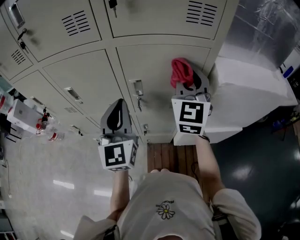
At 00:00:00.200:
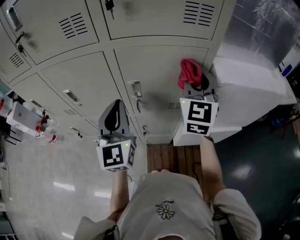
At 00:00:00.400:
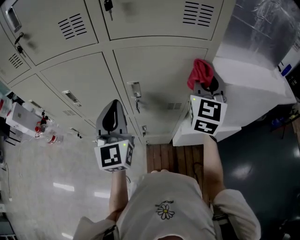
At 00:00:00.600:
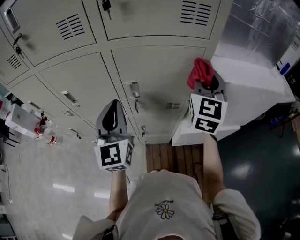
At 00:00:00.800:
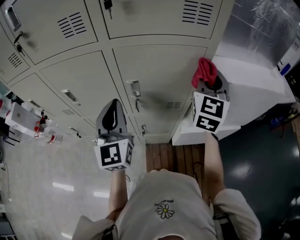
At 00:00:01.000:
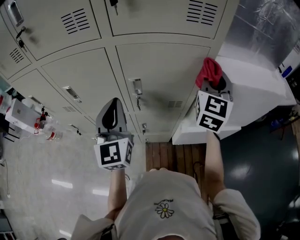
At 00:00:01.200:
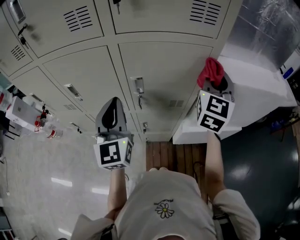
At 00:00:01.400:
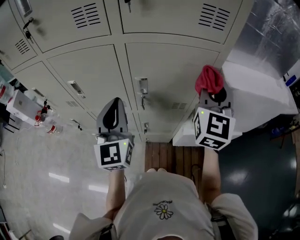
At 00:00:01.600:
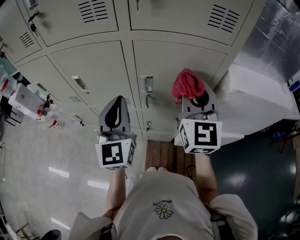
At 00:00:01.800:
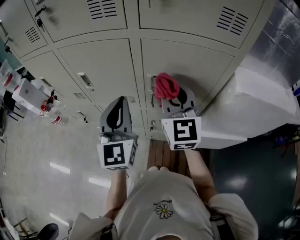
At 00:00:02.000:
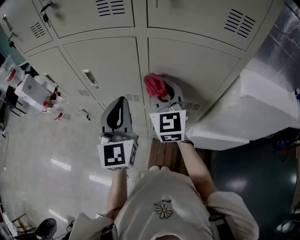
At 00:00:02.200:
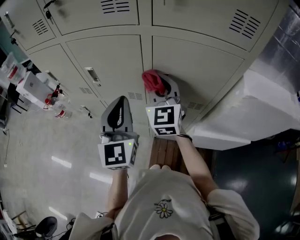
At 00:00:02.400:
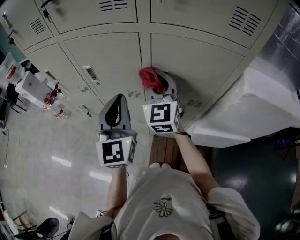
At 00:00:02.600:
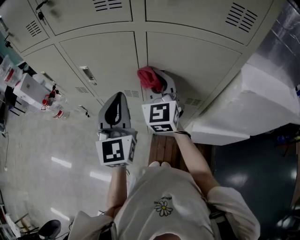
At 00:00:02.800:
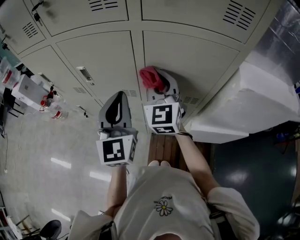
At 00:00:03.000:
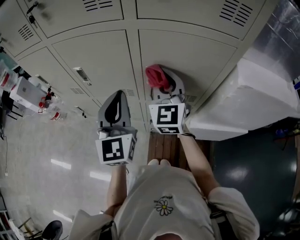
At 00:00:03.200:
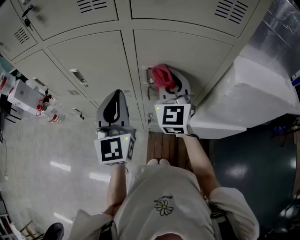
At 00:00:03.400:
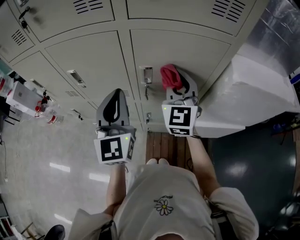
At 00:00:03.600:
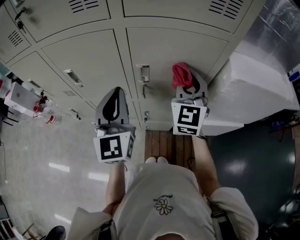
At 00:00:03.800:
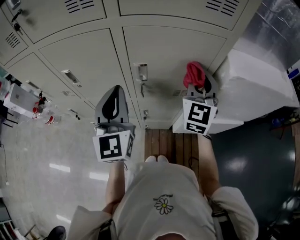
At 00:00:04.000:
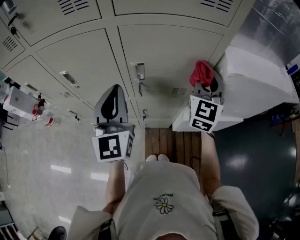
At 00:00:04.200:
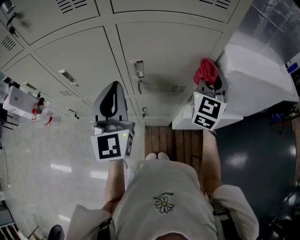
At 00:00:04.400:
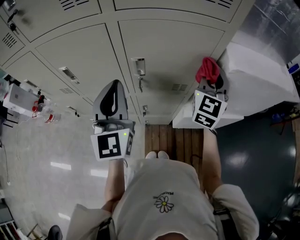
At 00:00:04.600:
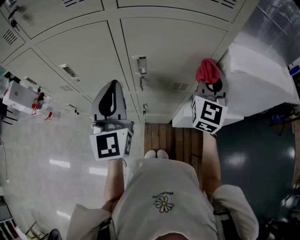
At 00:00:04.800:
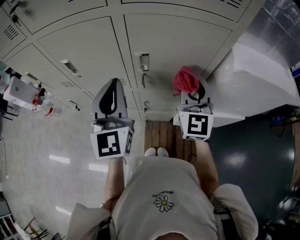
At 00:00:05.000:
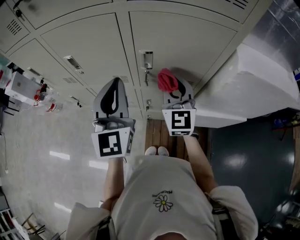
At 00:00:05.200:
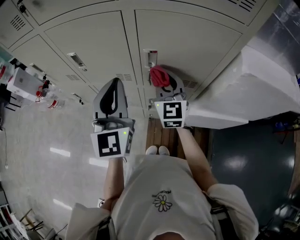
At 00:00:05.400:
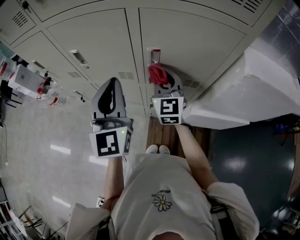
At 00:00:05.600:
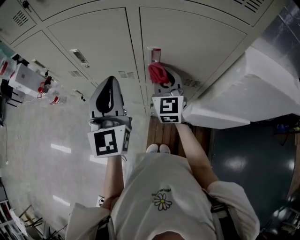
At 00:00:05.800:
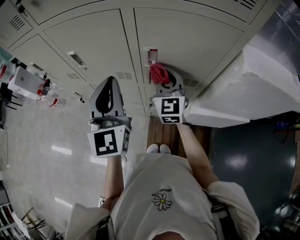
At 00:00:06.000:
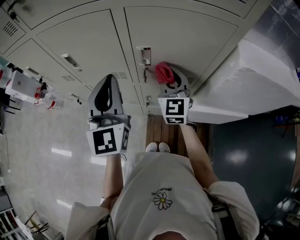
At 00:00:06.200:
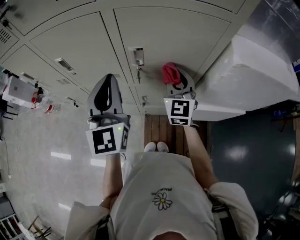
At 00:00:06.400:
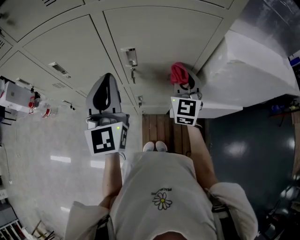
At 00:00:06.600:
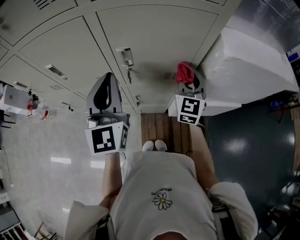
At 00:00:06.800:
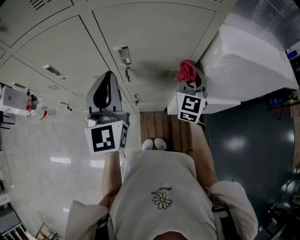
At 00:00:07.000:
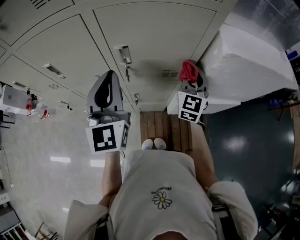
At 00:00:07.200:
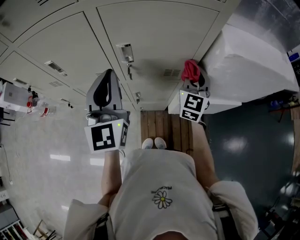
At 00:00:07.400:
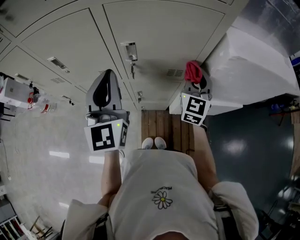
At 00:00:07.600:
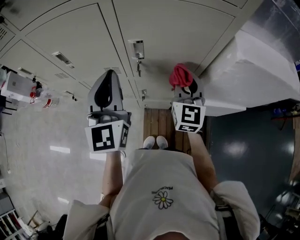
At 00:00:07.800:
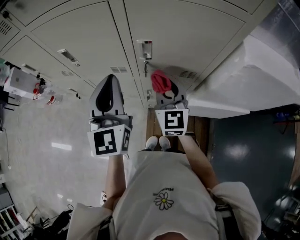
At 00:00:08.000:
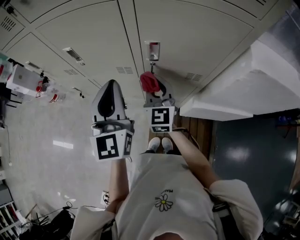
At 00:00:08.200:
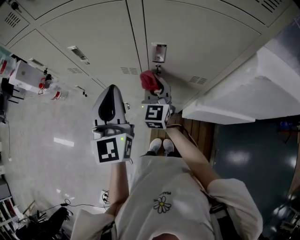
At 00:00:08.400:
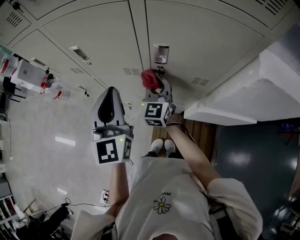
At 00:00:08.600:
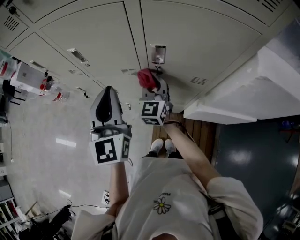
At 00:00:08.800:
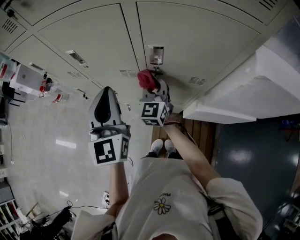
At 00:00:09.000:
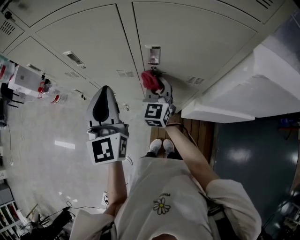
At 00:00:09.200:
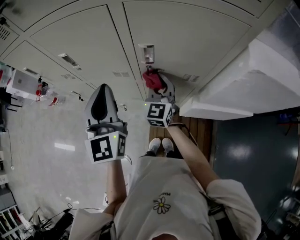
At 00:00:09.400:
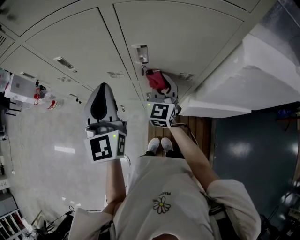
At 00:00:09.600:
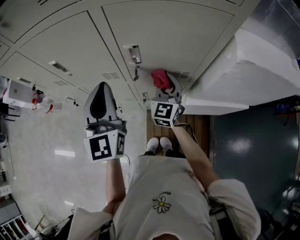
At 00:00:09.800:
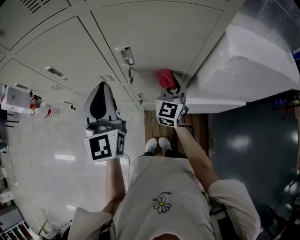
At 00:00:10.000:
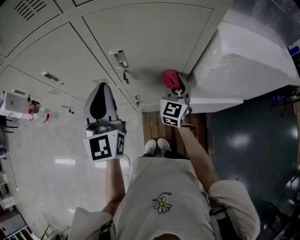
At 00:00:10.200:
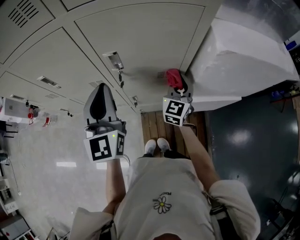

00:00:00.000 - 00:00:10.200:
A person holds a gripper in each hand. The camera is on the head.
00:00:00.000 - 00:00:01.400: The right gripper shifts approximately 5 cm to the right.
00:00:01.400 - 00:00:03.000: The right gripper goes roughly 20 cm to the left and downward, and swivels approximately 20 degrees.
00:00:03.000 - 00:00:04.400: The right gripper moves to the right, some 20 cm, and swivels approximately 30 degrees.
00:00:04.400 - 00:00:05.800: The right gripper moves to the left and downward, roughly 20 cm, and swivels roughly 30 degrees.
00:00:05.800 - 00:00:07.200: The right gripper moves to the right, approximately 20 cm, and turns by some 30 degrees. Meanwhile the left gripper shifts about 5 cm to the right.
00:00:07.200 - 00:00:08.800: The left gripper shifts about 10 cm to the left. Meanwhile the right gripper shifts roughly 25 cm to the left, and swivels some 20 degrees.
00:00:08.800 - 00:00:10.200: The left gripper shifts roughly 10 cm to the right. The right gripper moves to the right, some 25 cm, and turns by about 30 degrees.

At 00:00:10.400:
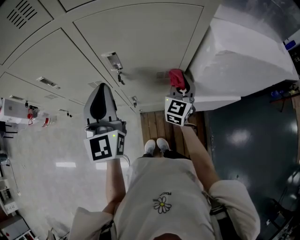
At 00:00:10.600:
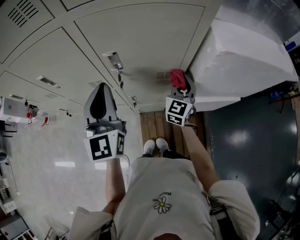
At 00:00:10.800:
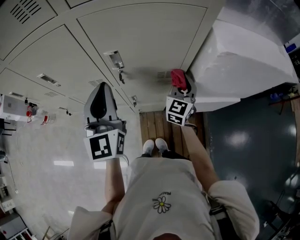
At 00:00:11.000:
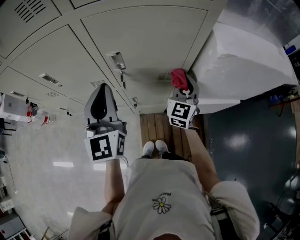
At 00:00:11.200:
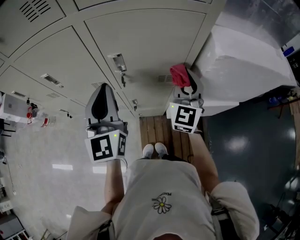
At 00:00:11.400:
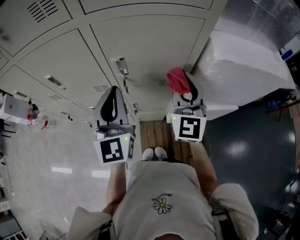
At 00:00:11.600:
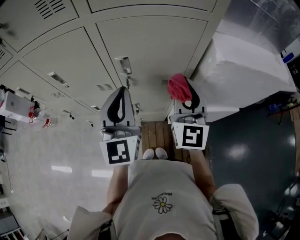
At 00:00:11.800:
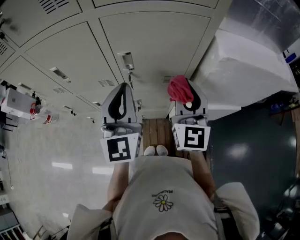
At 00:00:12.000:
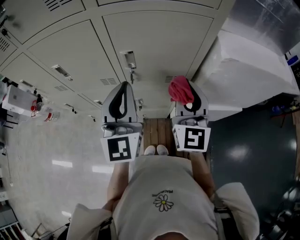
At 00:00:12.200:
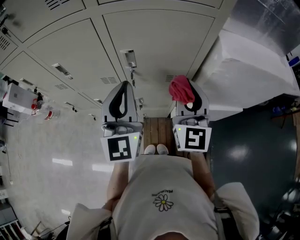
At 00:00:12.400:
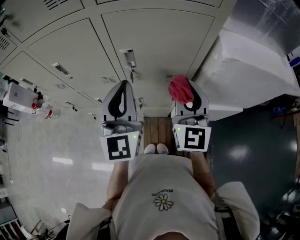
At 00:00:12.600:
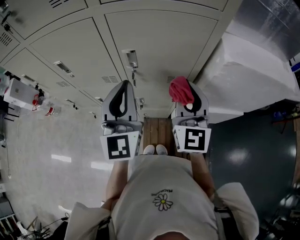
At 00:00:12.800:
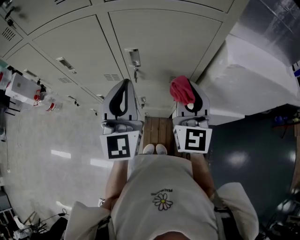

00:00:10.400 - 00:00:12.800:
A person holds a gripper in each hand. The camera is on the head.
00:00:10.400 - 00:00:11.600: The right gripper moves upward and backward, some 20 cm, and swivels approximately 30 degrees.
00:00:11.600 - 00:00:12.800: The grippers make only small movements.

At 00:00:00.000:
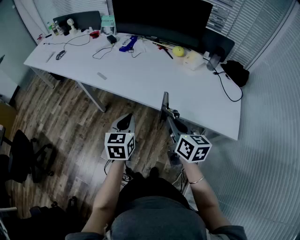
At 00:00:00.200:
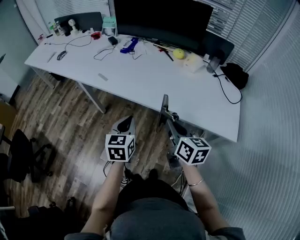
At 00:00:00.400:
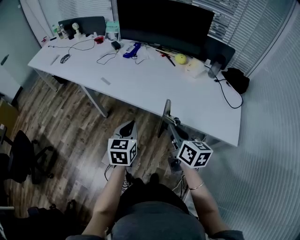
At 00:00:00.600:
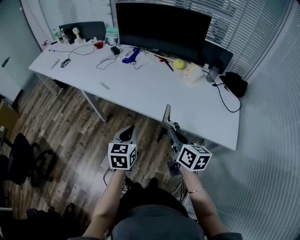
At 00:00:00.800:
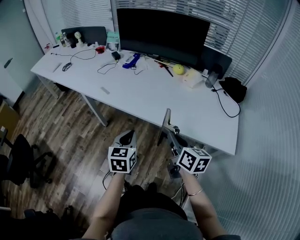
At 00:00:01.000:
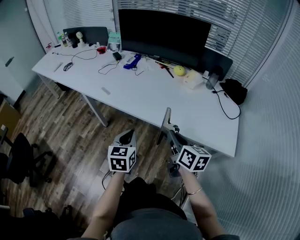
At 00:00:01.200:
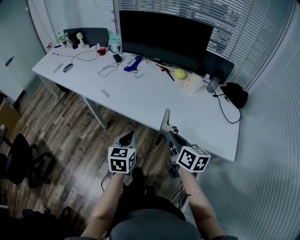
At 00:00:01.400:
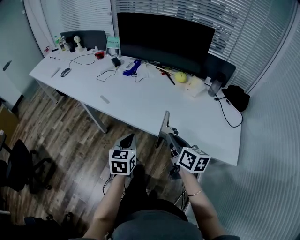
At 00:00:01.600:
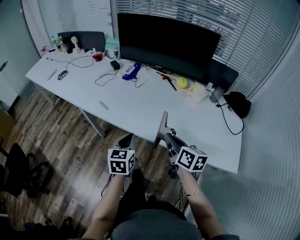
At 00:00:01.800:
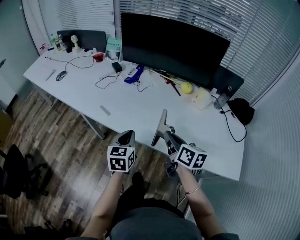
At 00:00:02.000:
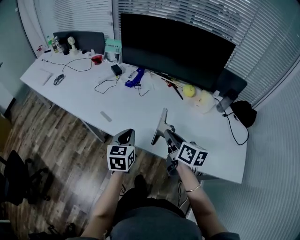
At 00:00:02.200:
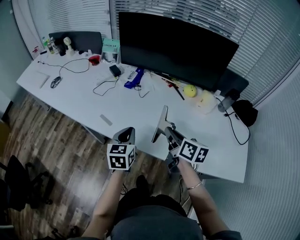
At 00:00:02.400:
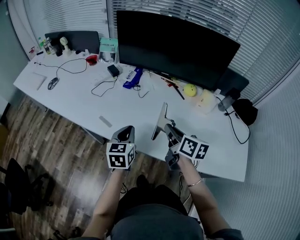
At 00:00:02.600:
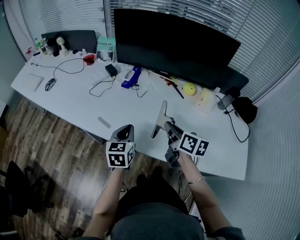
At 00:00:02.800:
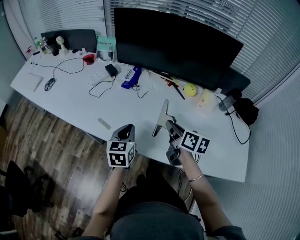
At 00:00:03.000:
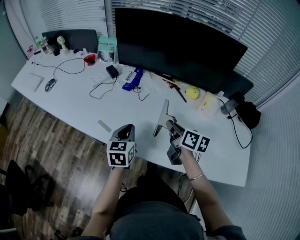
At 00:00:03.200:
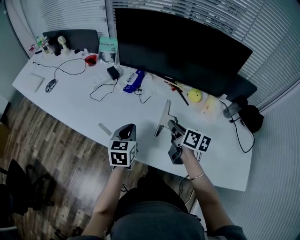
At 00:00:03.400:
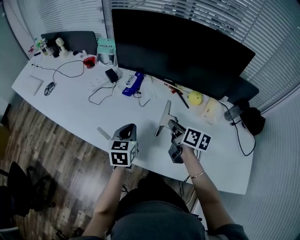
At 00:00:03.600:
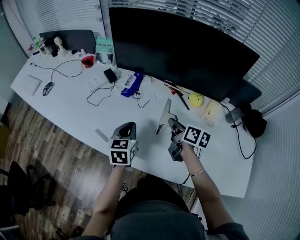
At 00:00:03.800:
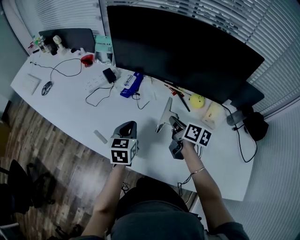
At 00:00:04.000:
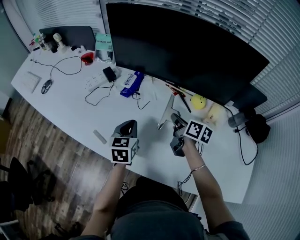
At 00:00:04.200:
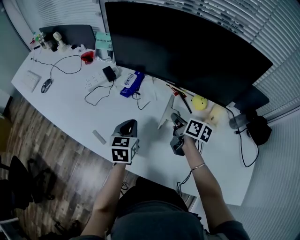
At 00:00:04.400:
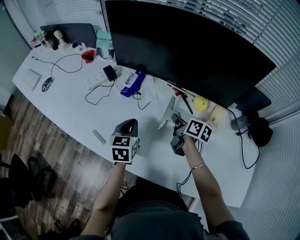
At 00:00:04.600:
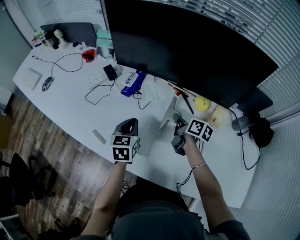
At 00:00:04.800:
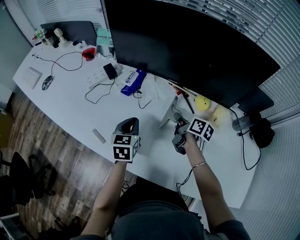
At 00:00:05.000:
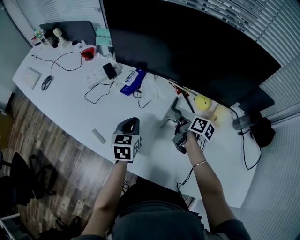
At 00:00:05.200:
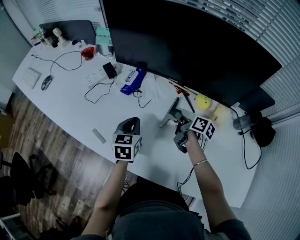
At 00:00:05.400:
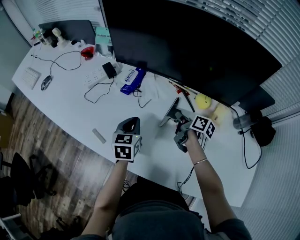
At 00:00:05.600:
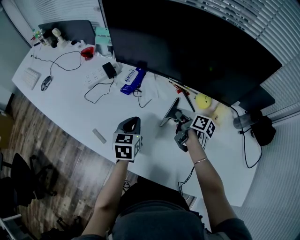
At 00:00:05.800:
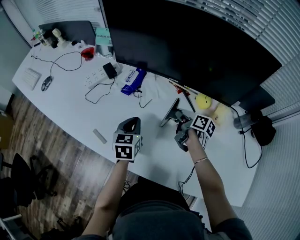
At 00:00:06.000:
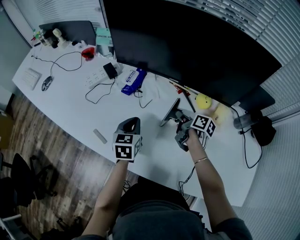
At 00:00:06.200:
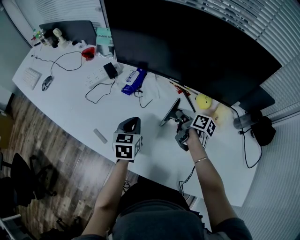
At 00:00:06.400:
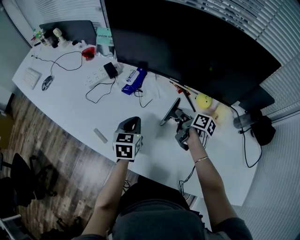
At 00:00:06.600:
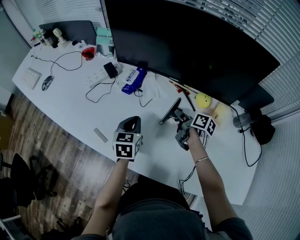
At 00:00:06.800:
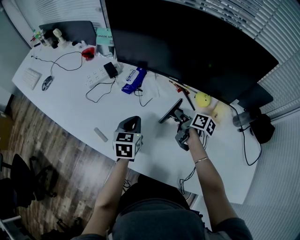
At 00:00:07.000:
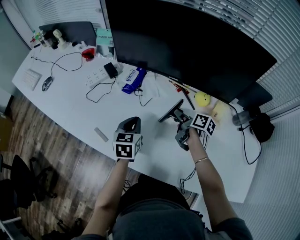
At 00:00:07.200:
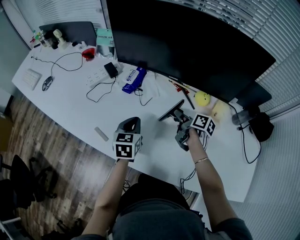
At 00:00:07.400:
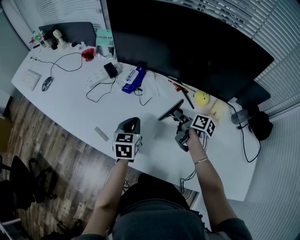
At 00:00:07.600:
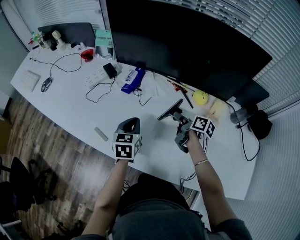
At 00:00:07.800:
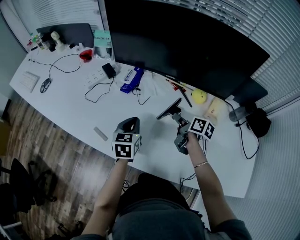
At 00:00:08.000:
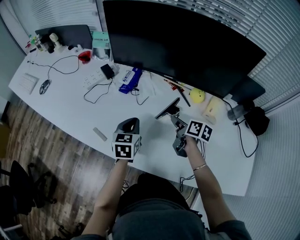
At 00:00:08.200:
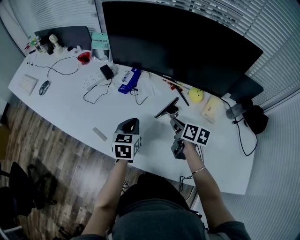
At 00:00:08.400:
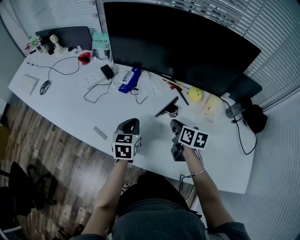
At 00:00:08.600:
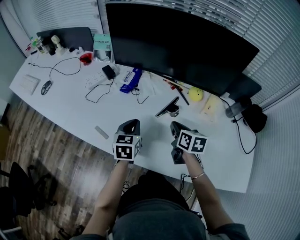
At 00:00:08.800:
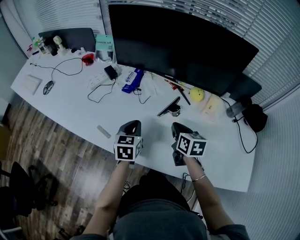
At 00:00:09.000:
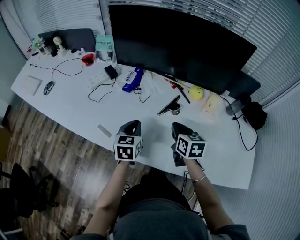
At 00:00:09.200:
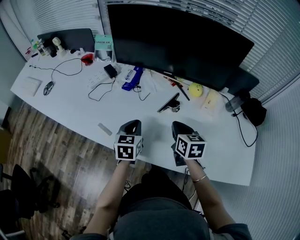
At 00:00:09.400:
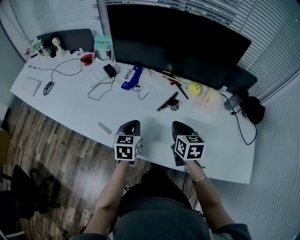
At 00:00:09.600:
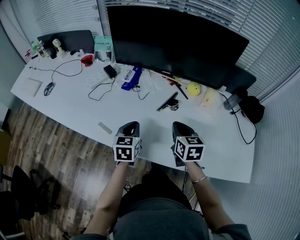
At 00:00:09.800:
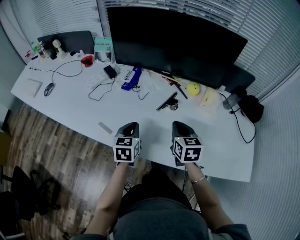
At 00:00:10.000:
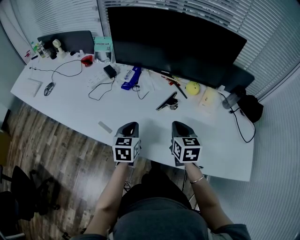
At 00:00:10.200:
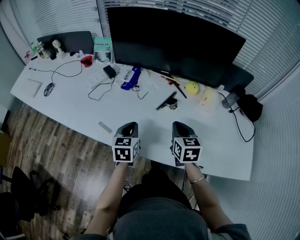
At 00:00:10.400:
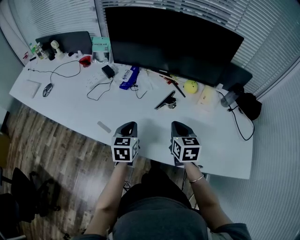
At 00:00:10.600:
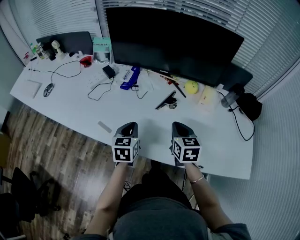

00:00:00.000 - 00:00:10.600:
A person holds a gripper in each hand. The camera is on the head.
00:00:00.000 - 00:00:01.600: Both grippers travel together forward, about 10 cm.
00:00:01.600 - 00:00:03.000: Both grippers travel together forward, about 20 cm.
00:00:03.000 - 00:00:04.600: The left gripper shifts about 10 cm forward, while the right gripper goes roughly 20 cm forward, downward and to the right.
00:00:04.600 - 00:00:06.000: The grippers make only small movements.
00:00:06.000 - 00:00:07.600: The right gripper opens up.
00:00:07.600 - 00:00:09.000: The right gripper goes about 10 cm backward and upward, rotates around the line of its fingers by some 40 degrees, counterclockwise from behind, and closes its fingers.
00:00:09.000 - 00:00:10.600: The grippers make only small movements.
